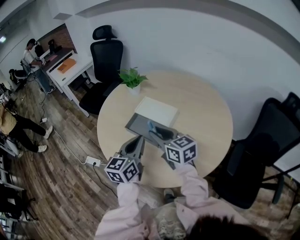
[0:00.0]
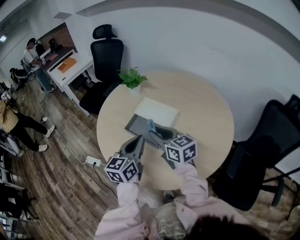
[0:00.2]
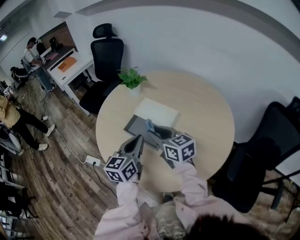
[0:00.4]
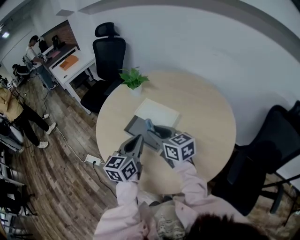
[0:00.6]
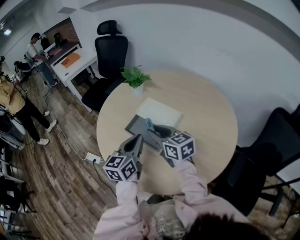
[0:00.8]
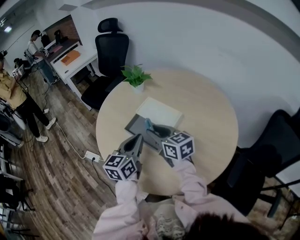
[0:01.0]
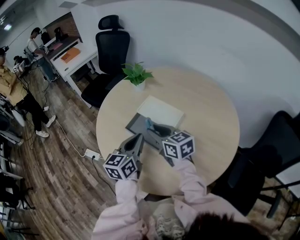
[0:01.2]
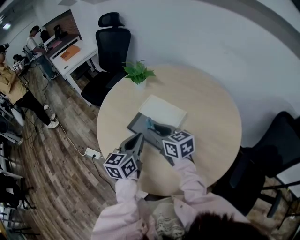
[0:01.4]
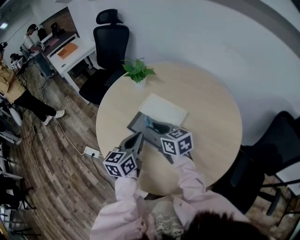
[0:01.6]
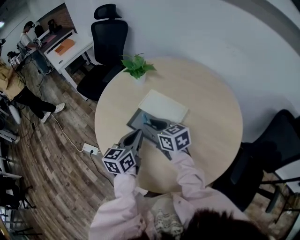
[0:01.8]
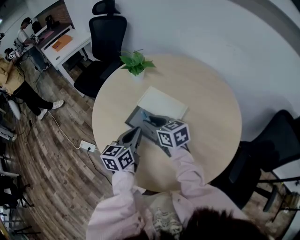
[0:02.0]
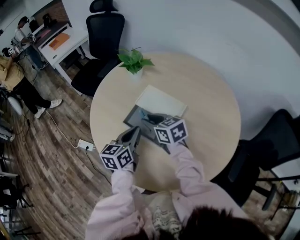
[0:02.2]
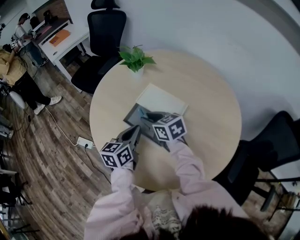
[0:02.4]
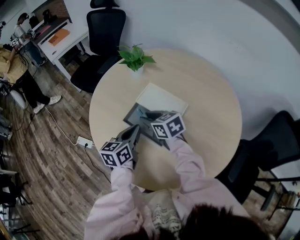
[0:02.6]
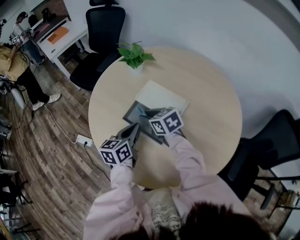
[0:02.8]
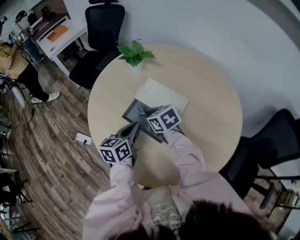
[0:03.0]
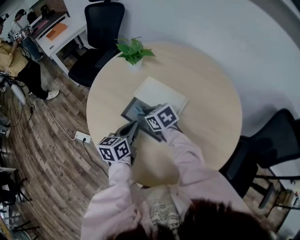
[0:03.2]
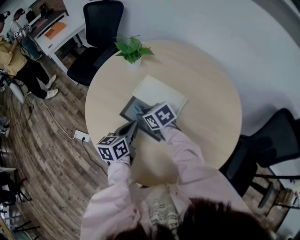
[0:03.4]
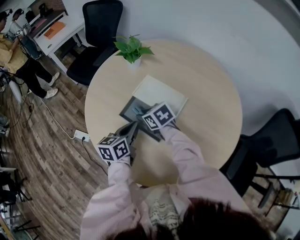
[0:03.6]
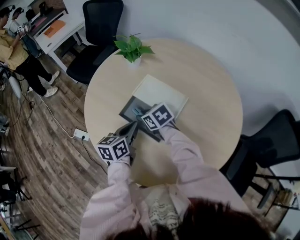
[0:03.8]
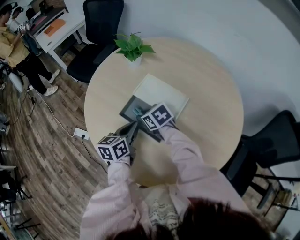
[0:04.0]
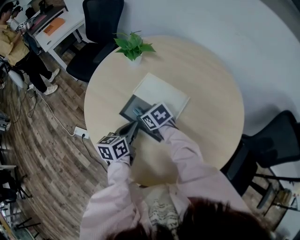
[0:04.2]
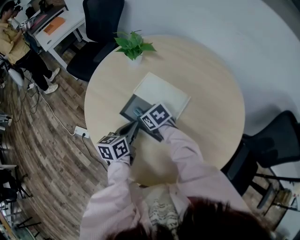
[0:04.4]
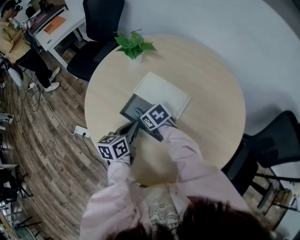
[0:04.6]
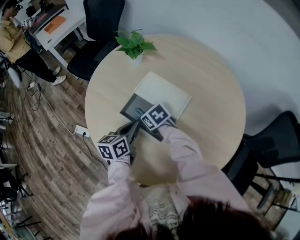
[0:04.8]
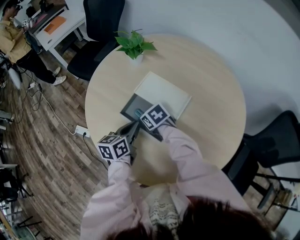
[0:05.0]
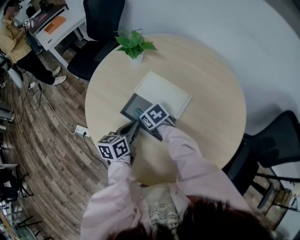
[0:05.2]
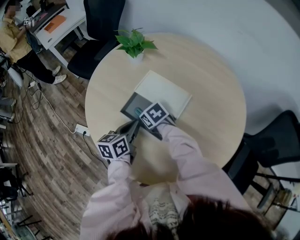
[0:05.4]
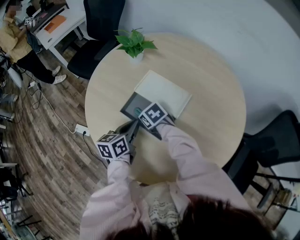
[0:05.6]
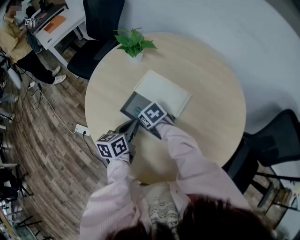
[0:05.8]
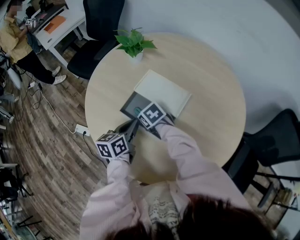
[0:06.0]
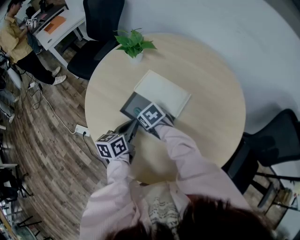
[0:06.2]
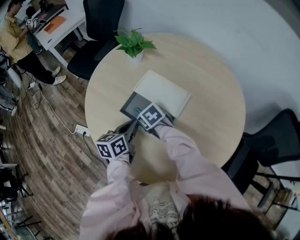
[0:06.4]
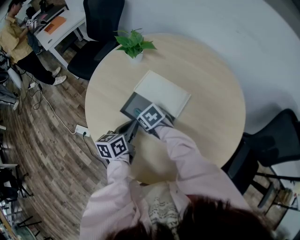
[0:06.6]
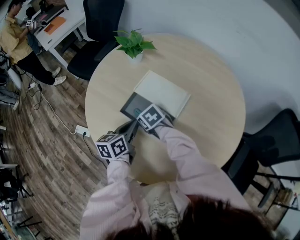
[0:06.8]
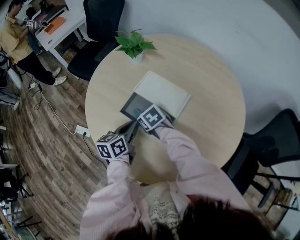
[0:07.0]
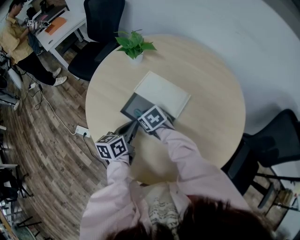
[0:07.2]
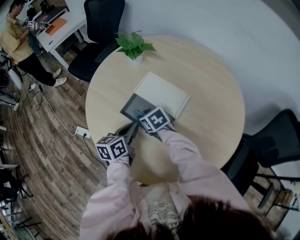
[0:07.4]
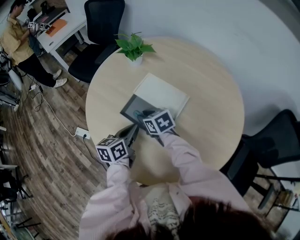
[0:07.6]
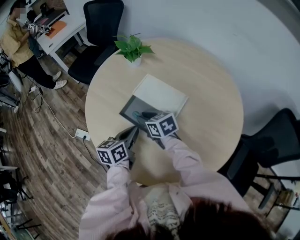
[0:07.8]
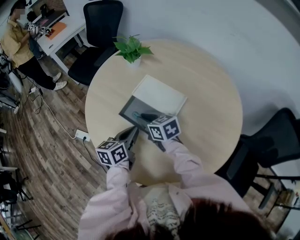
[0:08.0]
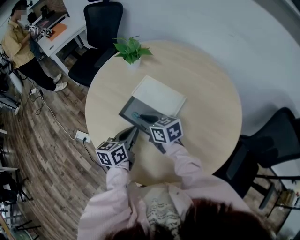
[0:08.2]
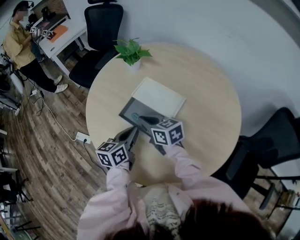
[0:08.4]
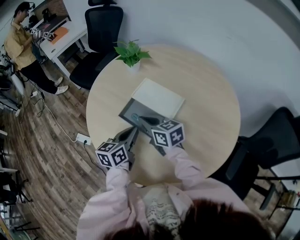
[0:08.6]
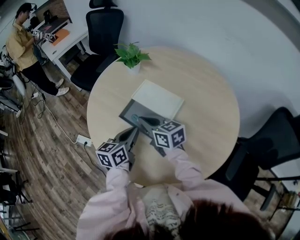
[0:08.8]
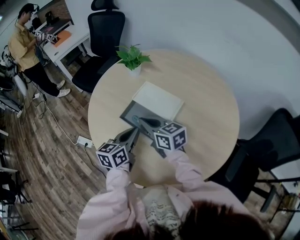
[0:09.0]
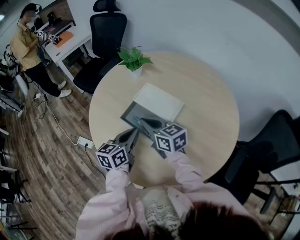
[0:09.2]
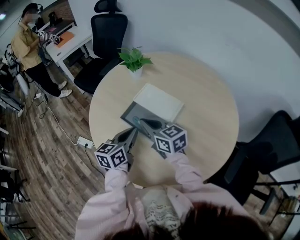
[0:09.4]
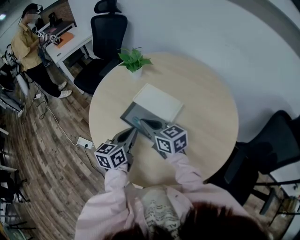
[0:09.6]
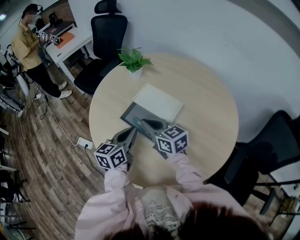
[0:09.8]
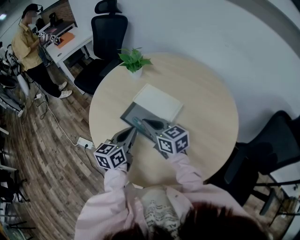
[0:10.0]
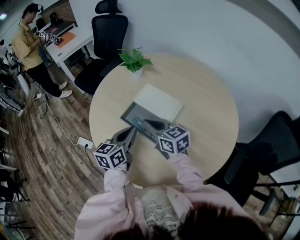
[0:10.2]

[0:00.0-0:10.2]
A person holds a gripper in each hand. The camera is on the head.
0:00.0 to 0:01.4: Both grippers travel together forward, approximately 10 cm.
0:01.4 to 0:03.0: The right gripper is displaced downward and forward by about 10 cm, and rotates roughly 20 degrees, while the left gripper heads downward, covering approximately 10 cm.
0:03.0 to 0:04.4: The right gripper is displaced downward by some 5 cm.
0:04.4 to 0:07.2: The grippers move only a little.
0:07.2 to 0:08.8: The right gripper goes about 15 cm upward, angles its fingers upward, by some 40 degrees, and closes its fingers; the left gripper moves approximately 5 cm.
0:08.8 to 0:10.2: The grippers stay close to where they were, moving slightly.

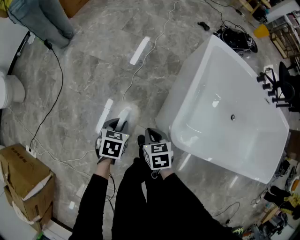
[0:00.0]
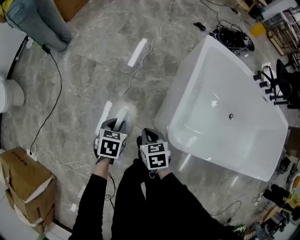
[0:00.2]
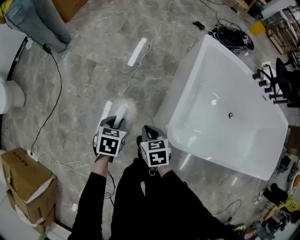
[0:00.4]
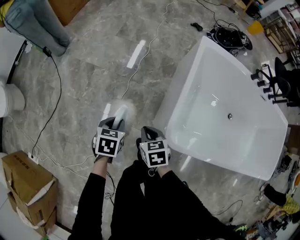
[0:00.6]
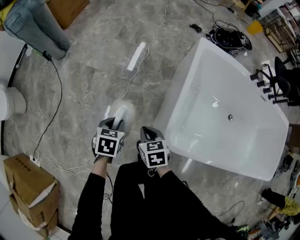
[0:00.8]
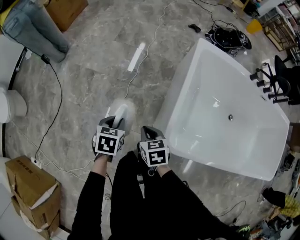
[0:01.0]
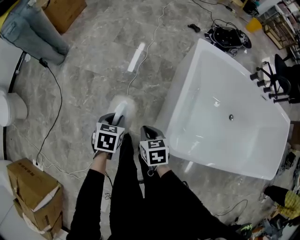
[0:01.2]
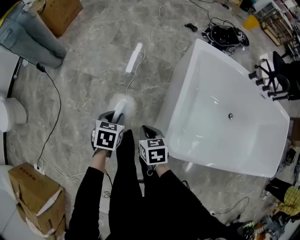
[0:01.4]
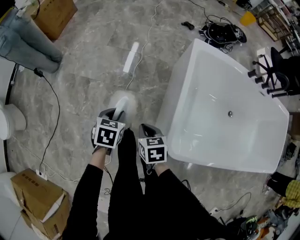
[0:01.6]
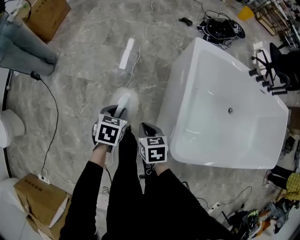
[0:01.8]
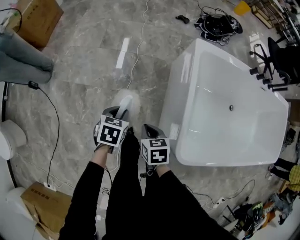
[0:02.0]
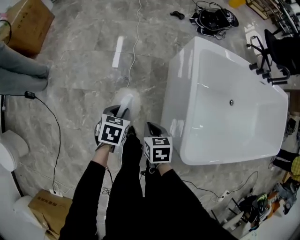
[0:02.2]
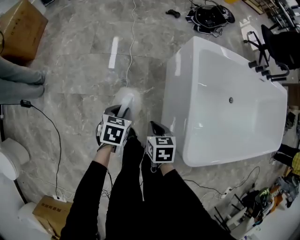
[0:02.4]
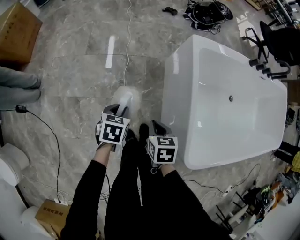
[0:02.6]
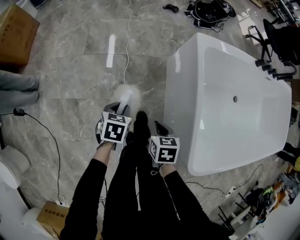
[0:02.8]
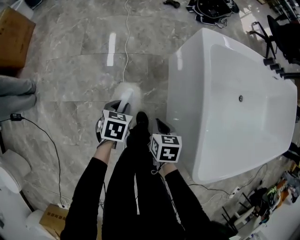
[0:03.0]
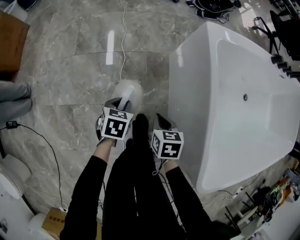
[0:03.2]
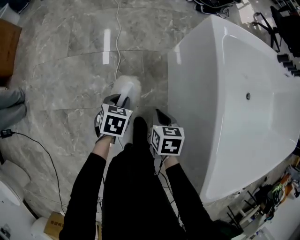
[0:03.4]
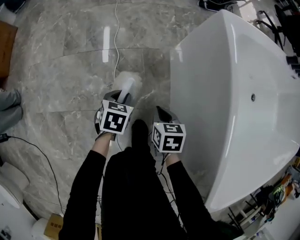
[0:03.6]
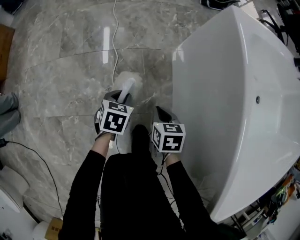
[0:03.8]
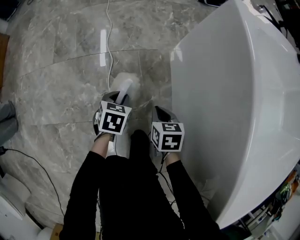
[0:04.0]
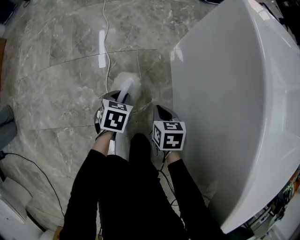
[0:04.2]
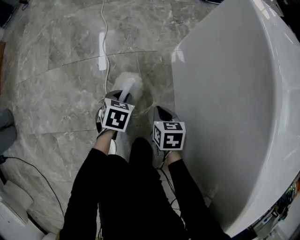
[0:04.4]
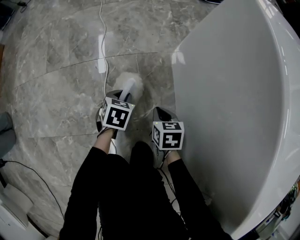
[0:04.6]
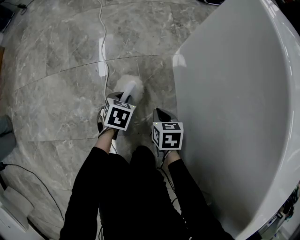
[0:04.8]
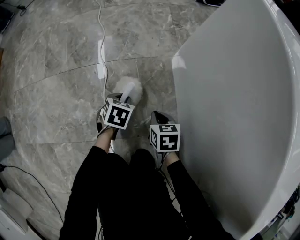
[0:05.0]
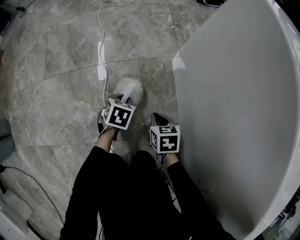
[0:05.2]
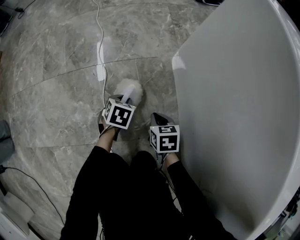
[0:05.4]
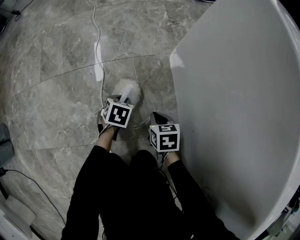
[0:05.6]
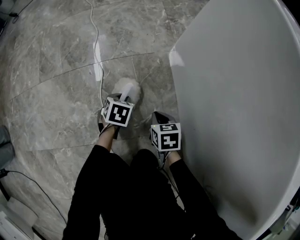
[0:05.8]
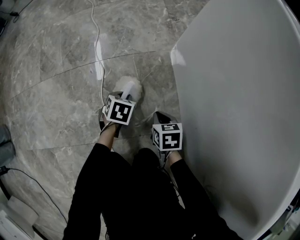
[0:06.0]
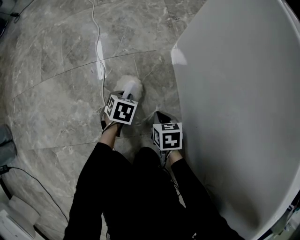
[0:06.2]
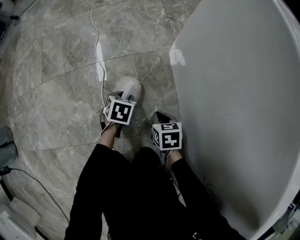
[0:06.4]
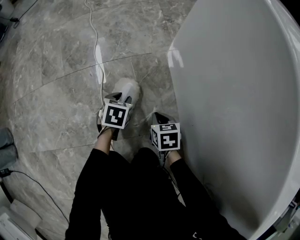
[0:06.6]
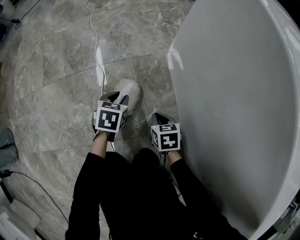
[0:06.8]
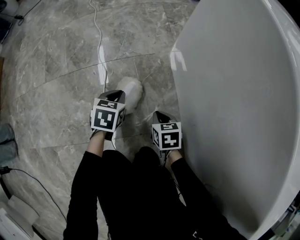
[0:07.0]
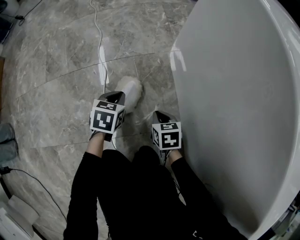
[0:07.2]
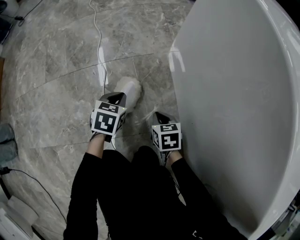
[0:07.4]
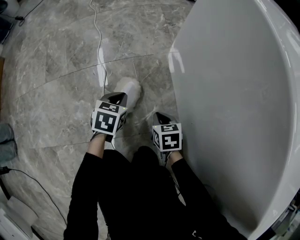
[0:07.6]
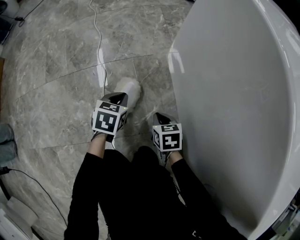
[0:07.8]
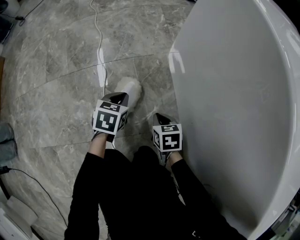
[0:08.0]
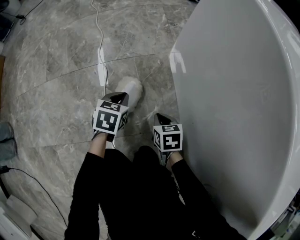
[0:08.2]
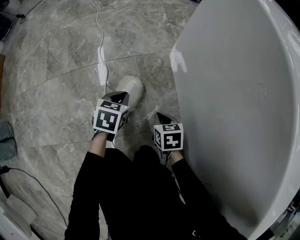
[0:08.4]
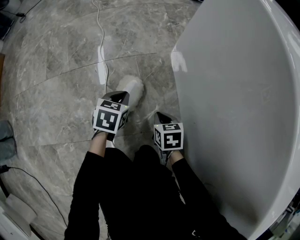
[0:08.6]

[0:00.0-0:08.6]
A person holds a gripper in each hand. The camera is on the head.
0:00.0 to 0:01.4: Both grippers travel together forward, about 10 cm.
0:01.4 to 0:02.8: The right gripper ends up some 20 cm from where it was, and rotates some 30 degrees. The left gripper changes place by some 25 cm.
0:02.8 to 0:04.4: Both grippers travel together downward and forward, some 40 cm.
0:04.4 to 0:05.8: The two grippers go about 10 cm downward.
0:05.8 to 0:07.2: The left gripper travels upward by about 10 cm.
0:07.2 to 0:08.6: The grippers move only a little.

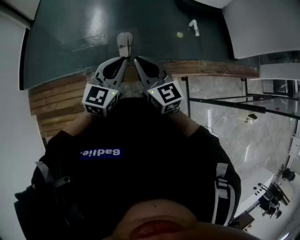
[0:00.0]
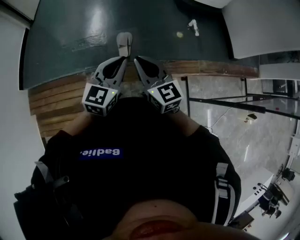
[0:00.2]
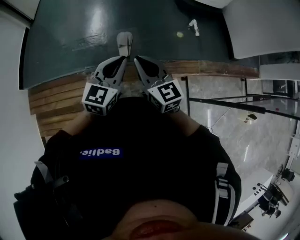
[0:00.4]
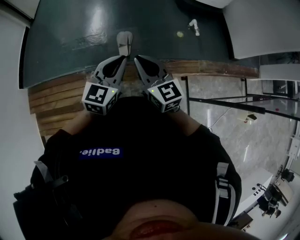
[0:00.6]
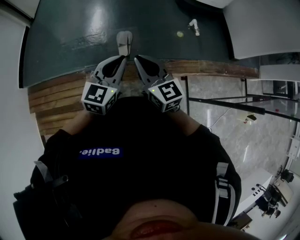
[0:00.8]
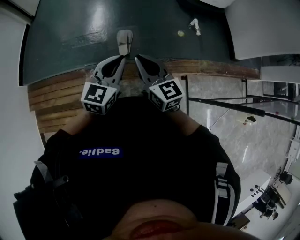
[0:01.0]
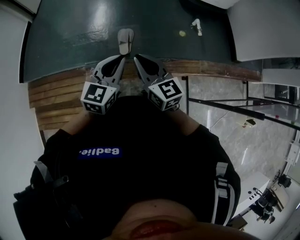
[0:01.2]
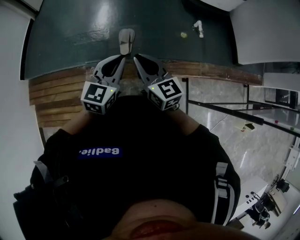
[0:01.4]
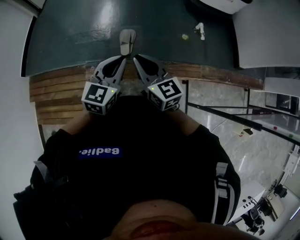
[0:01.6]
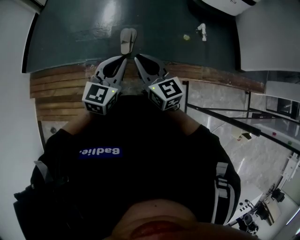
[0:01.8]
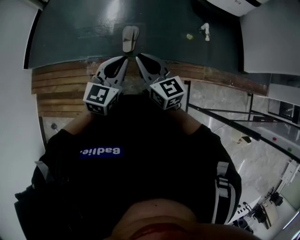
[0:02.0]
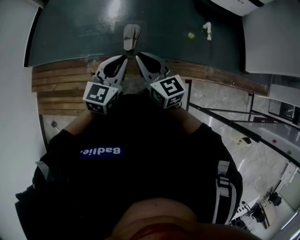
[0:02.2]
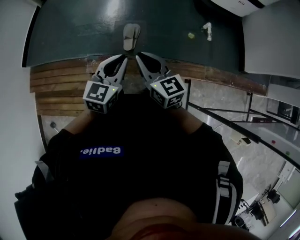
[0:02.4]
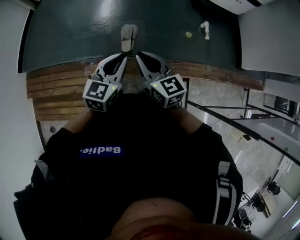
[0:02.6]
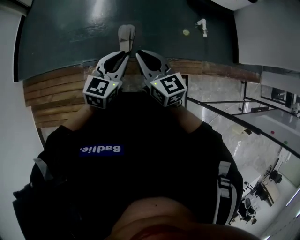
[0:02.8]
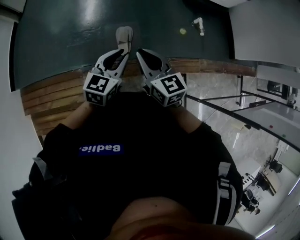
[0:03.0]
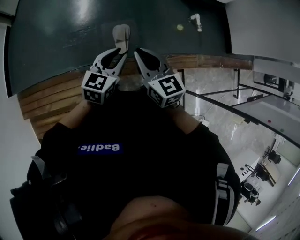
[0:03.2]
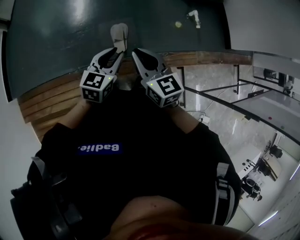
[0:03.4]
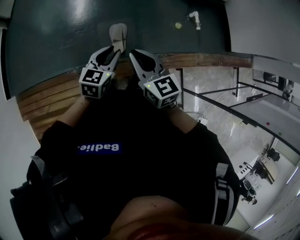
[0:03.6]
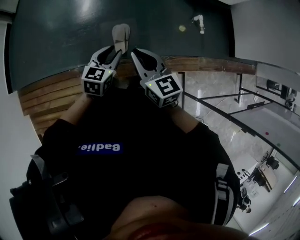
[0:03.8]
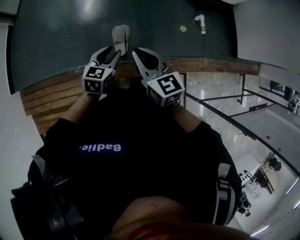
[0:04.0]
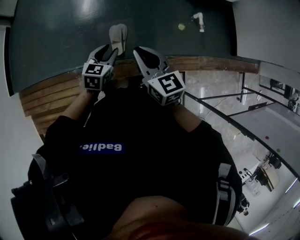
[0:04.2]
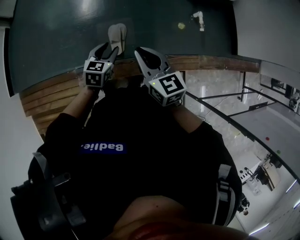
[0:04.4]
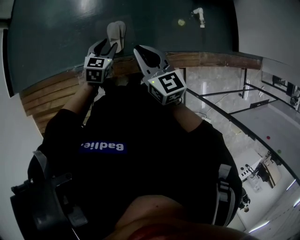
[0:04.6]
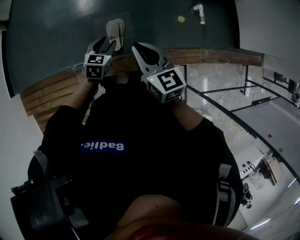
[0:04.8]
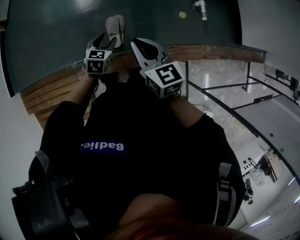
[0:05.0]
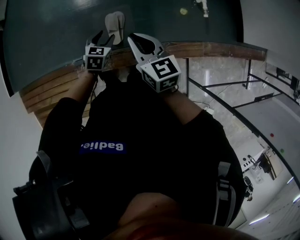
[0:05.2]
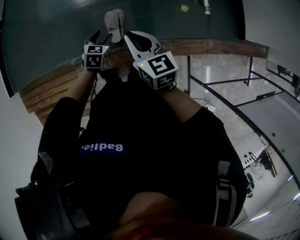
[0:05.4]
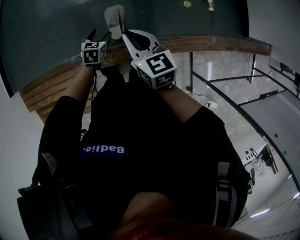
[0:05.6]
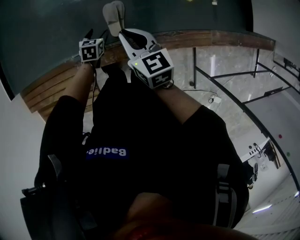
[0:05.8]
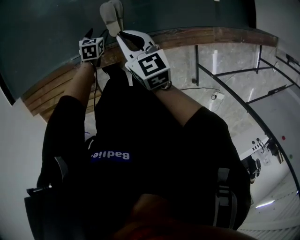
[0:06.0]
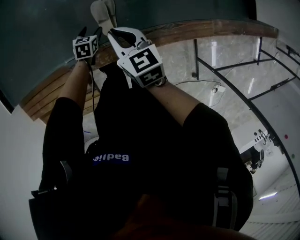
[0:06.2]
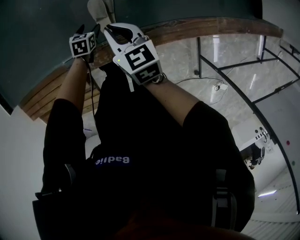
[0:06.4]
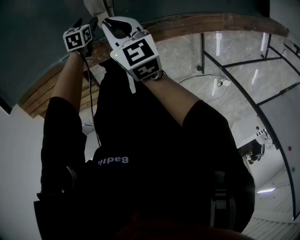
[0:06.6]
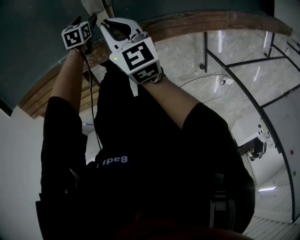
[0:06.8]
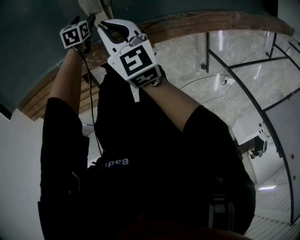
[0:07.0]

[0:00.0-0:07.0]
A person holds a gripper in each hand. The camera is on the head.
0:00.0 to 0:01.4: There are only small adjustments of the grippers.
0:01.4 to 0:02.8: The right gripper heads forward, covering roughly 10 cm. The left gripper shifts about 10 cm forward and downward.
0:02.8 to 0:04.2: The left gripper shifts some 20 cm forward and downward, and opens; the right gripper moves forward, roughly 10 cm.
0:04.2 to 0:05.6: The left gripper shifts roughly 20 cm downward, and opens up. The right gripper moves downward and forward, approximately 10 cm.
0:05.6 to 0:07.0: Both grippers travel together downward, approximately 30 cm.
